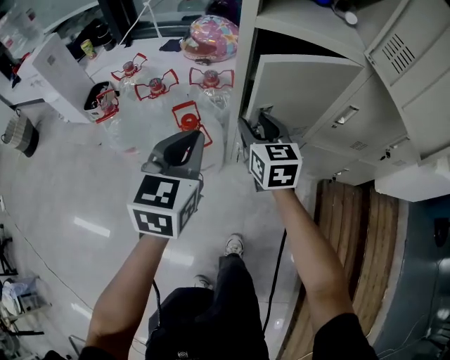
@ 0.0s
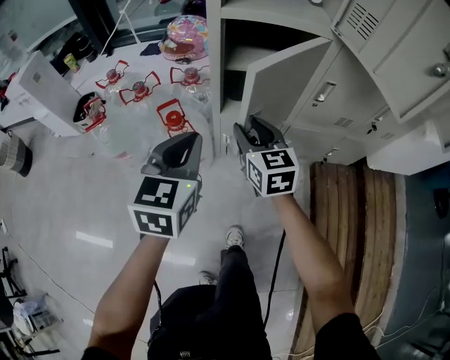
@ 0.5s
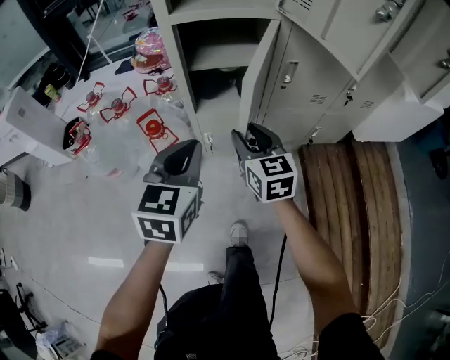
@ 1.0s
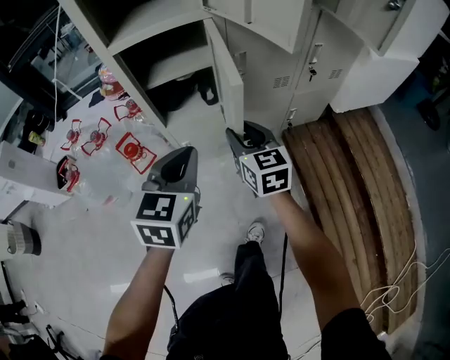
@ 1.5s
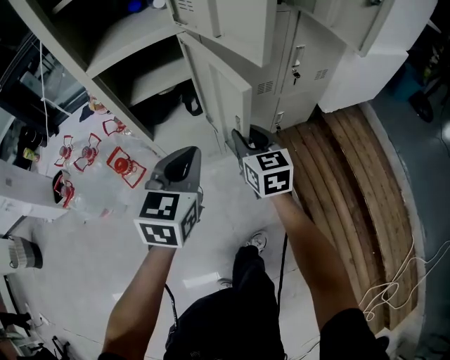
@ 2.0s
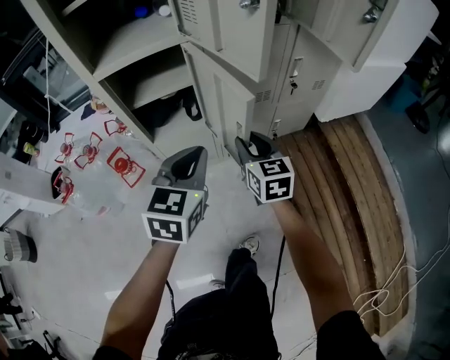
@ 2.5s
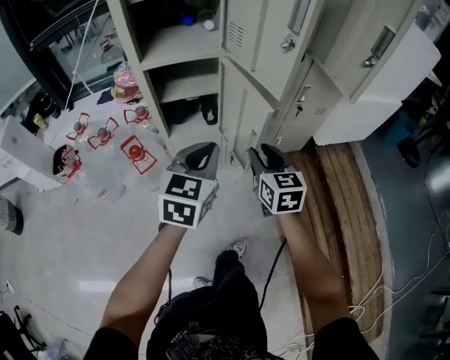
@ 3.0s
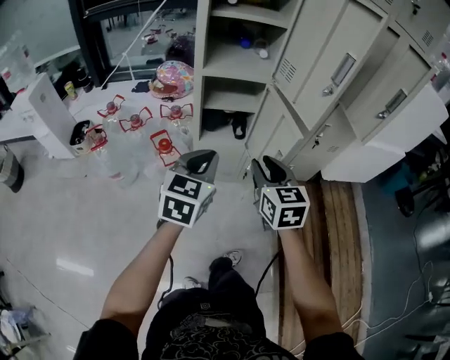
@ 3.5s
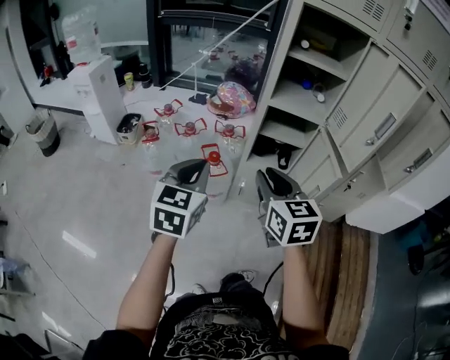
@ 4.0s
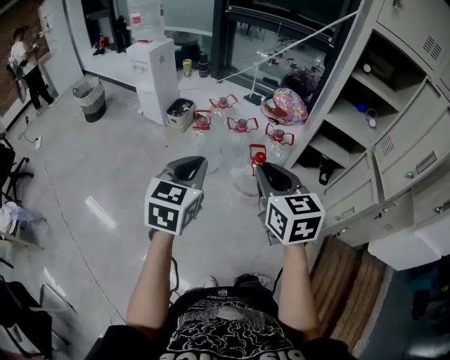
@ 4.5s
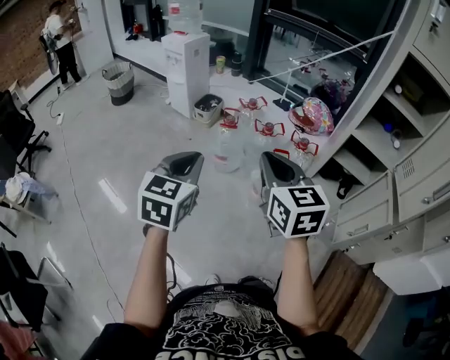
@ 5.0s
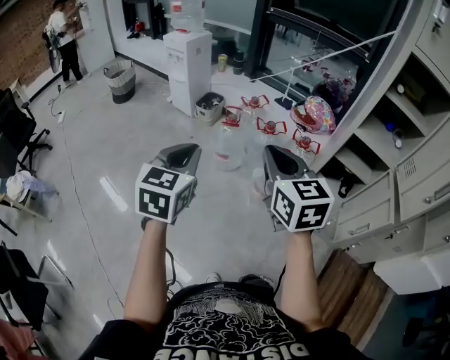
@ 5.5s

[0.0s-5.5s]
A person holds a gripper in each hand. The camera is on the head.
0.0s to 2.0s: Both grippers travel together to the right, some 25 cm. The right gripper changes its angle by some 20 degrees; the left gripper turns by some 30 degrees.
2.0s to 3.5s: The left gripper is displaced upward, to the left and backward by approximately 20 cm, while the right gripper heads upward, backward and to the left, covering approximately 25 cm.
3.5s to 5.5s: The right gripper ends up about 40 cm from where it was, changes its angle by approximately 40 degrees, and closes its fingers, while the left gripper changes place by approximately 40 cm, and rotates approximately 40 degrees.

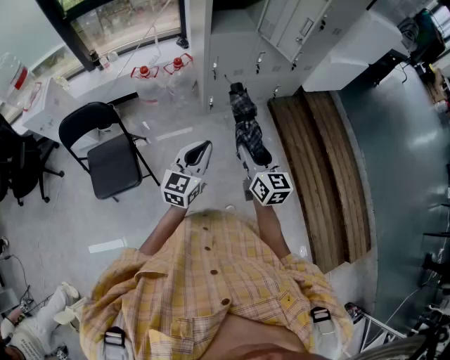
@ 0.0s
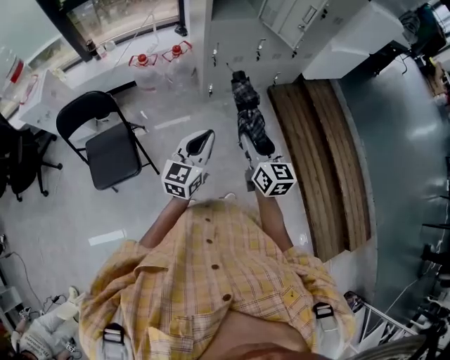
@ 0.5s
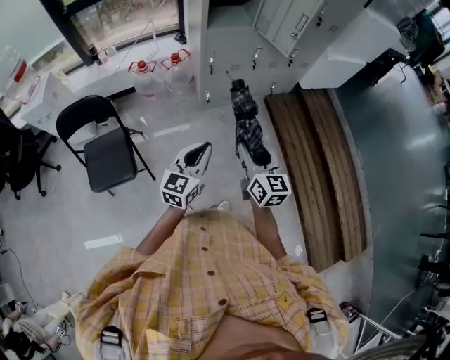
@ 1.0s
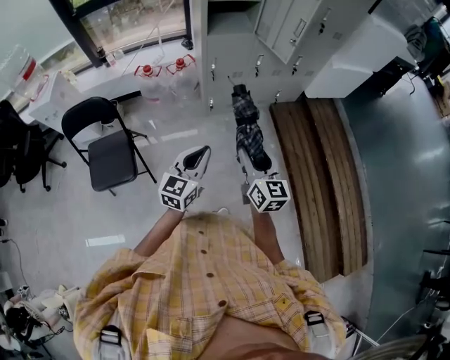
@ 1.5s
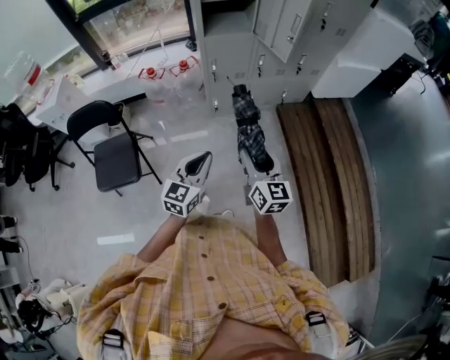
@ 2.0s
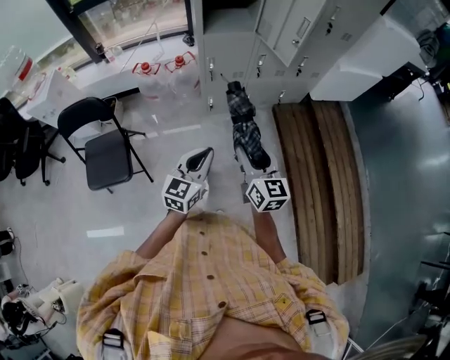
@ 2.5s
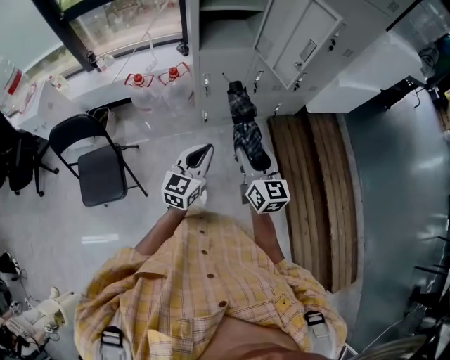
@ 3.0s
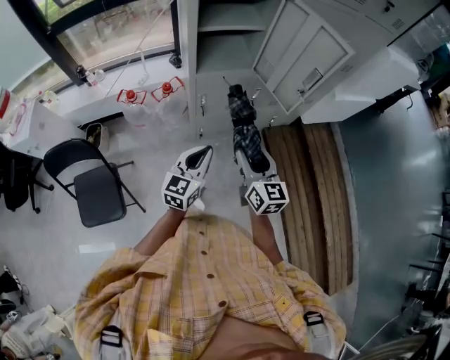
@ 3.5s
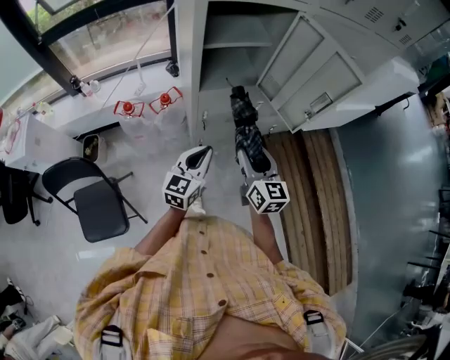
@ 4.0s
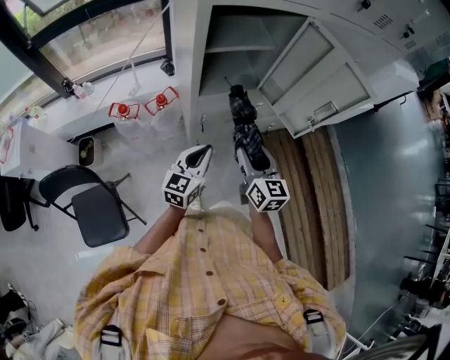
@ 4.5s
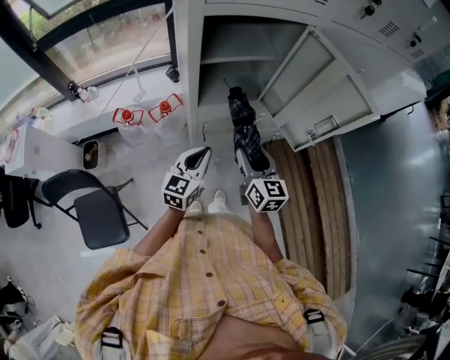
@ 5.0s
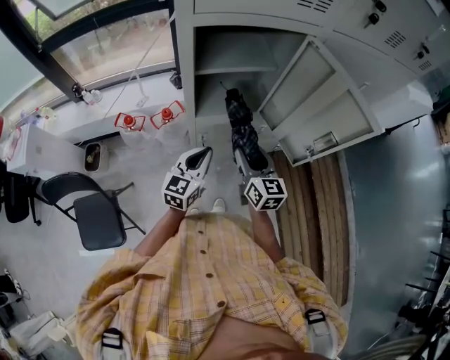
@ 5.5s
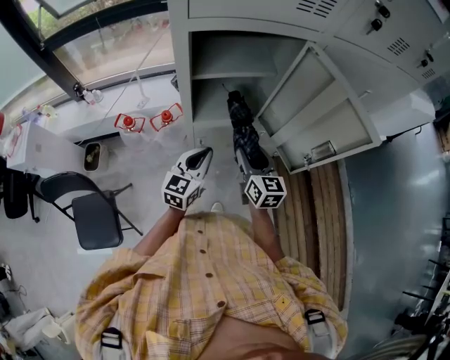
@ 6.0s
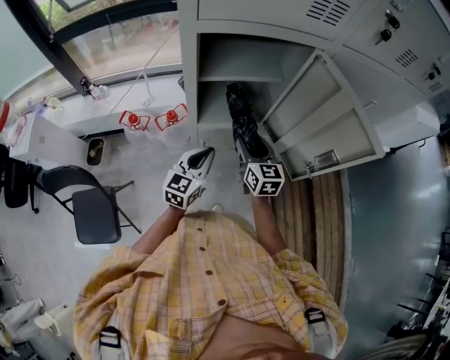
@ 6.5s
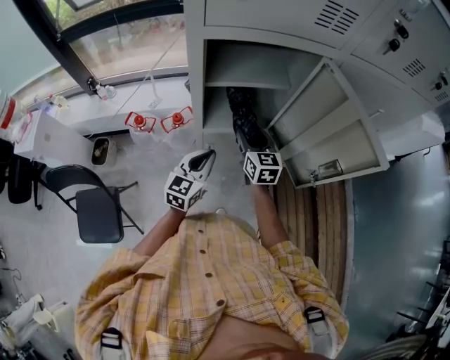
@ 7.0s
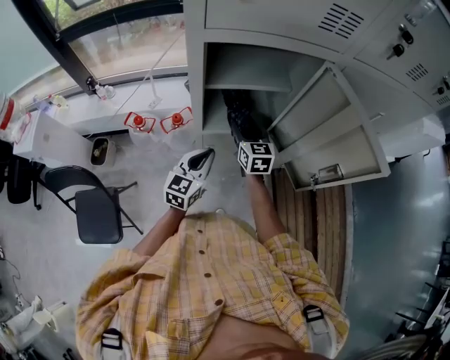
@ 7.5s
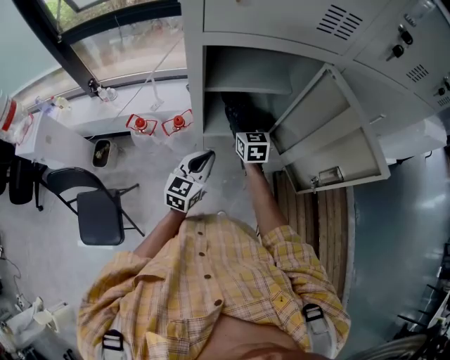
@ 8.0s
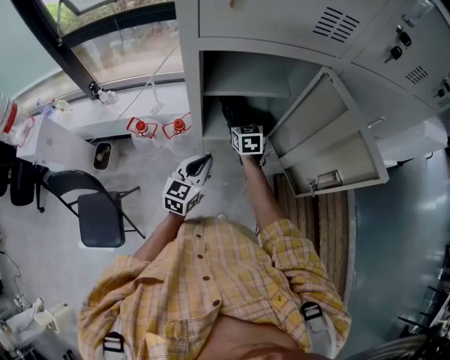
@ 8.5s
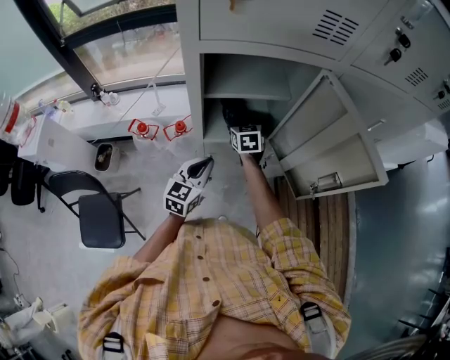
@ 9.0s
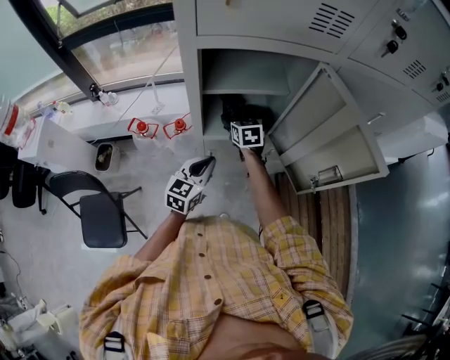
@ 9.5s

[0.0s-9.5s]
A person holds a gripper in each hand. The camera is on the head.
0.0s to 2.0s: Both grippers travel together to the right, approximately 10 cm.
2.0s to 4.0s: Both grippers move forward, some 35 cm.
4.0s to 5.5s: Both grippers move forward, about 15 cm.
5.5s to 7.5s: The right gripper shifts approximately 15 cm forward, while the left gripper ends up roughly 5 cm from where it was.
7.5s to 9.5s: The right gripper shifts roughly 5 cm forward, and opens up.

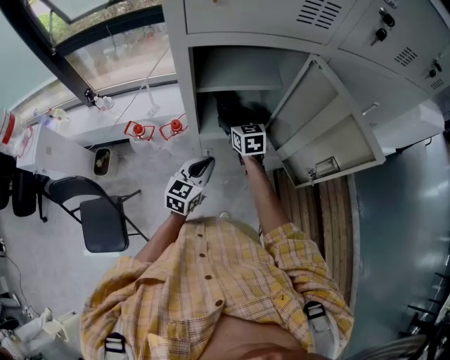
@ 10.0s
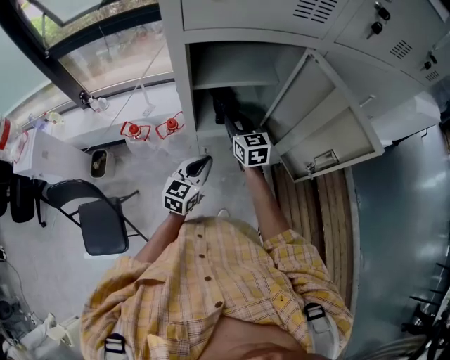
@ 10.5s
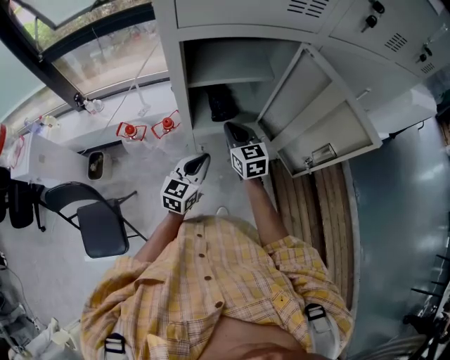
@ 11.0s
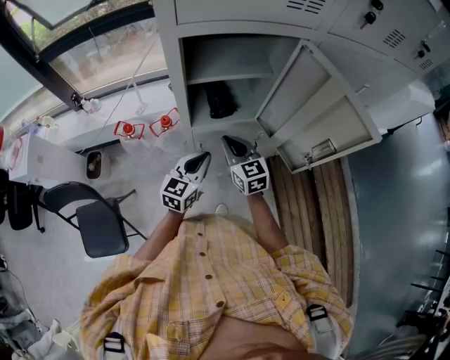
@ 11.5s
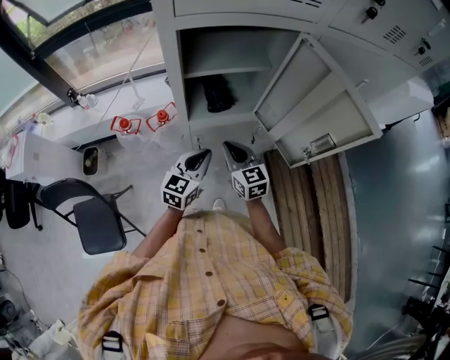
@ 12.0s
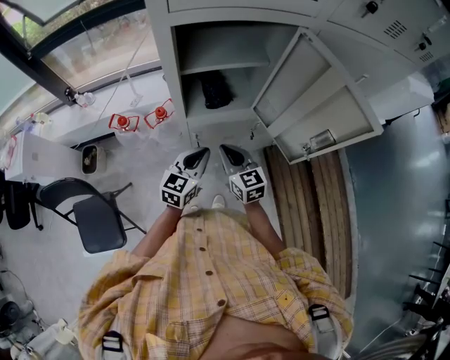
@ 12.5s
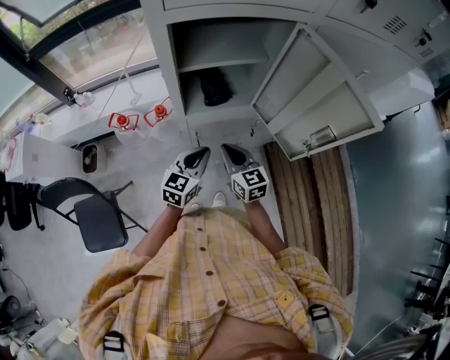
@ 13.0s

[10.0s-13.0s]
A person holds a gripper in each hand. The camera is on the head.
10.0s to 11.5s: The right gripper goes approximately 15 cm backward, and closes.
11.5s to 13.0s: The right gripper goes roughly 5 cm backward.

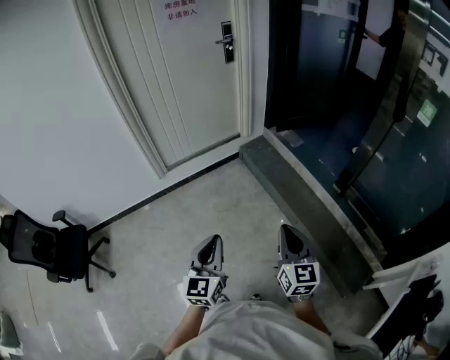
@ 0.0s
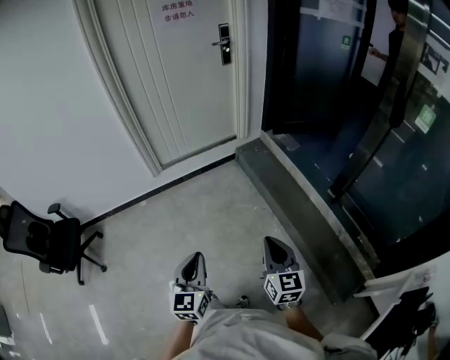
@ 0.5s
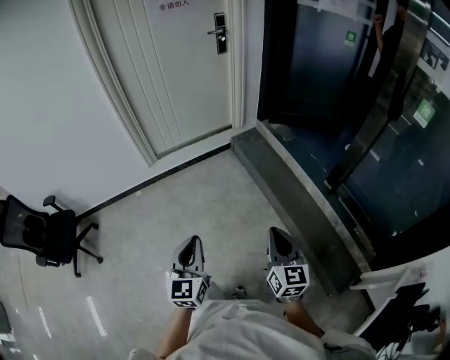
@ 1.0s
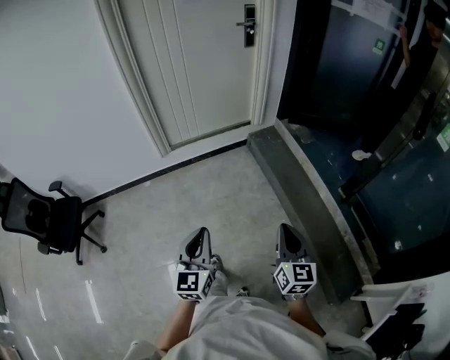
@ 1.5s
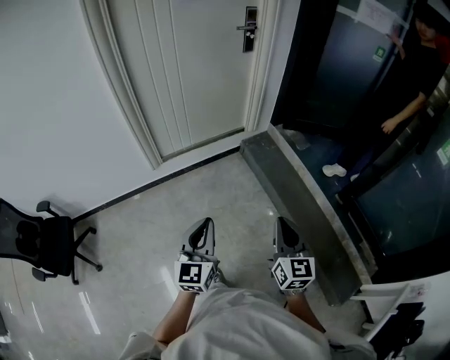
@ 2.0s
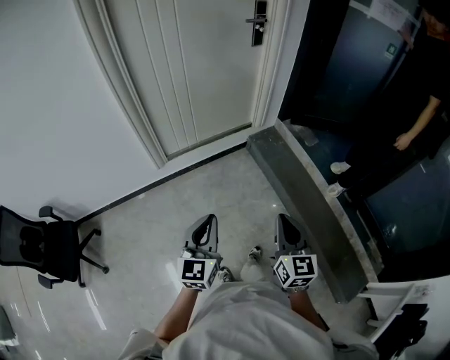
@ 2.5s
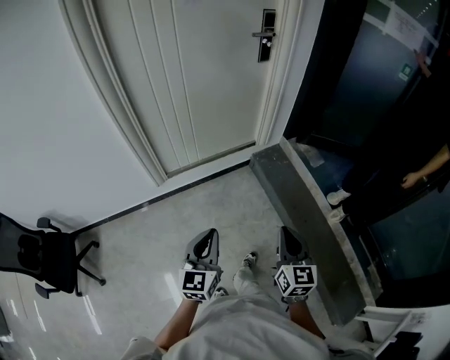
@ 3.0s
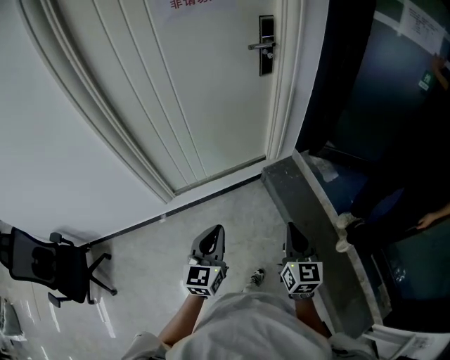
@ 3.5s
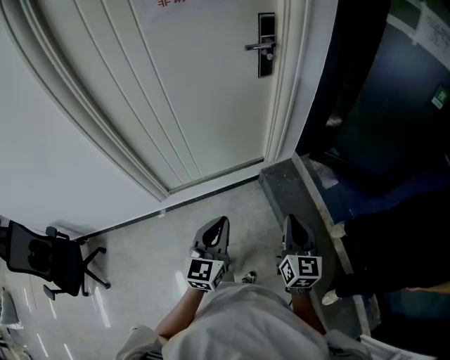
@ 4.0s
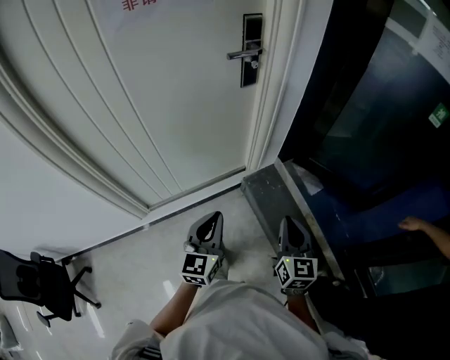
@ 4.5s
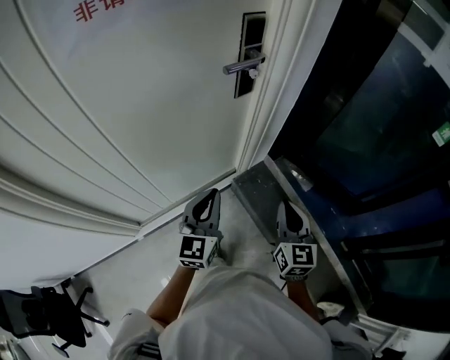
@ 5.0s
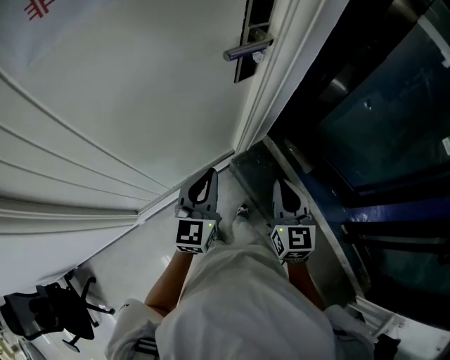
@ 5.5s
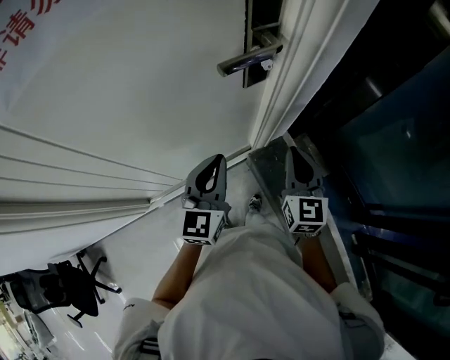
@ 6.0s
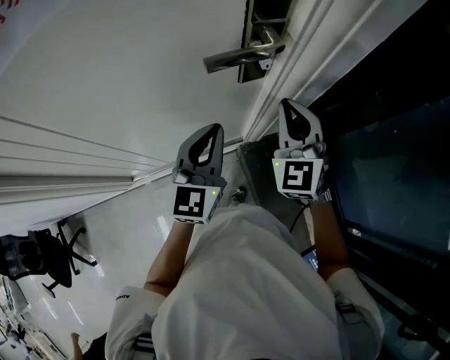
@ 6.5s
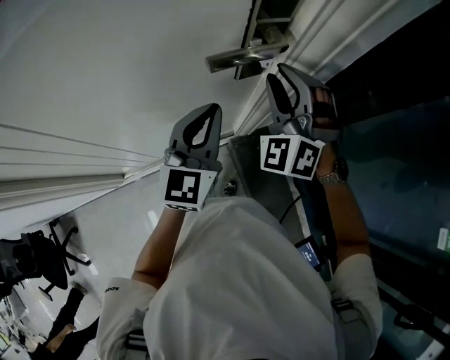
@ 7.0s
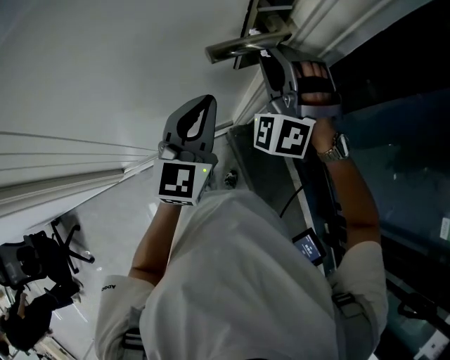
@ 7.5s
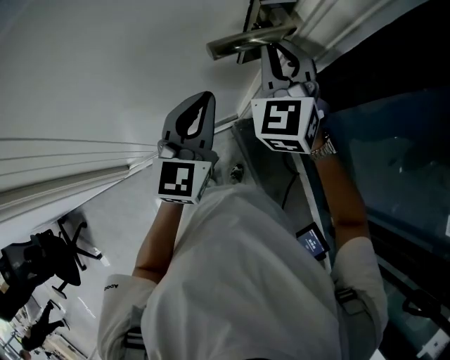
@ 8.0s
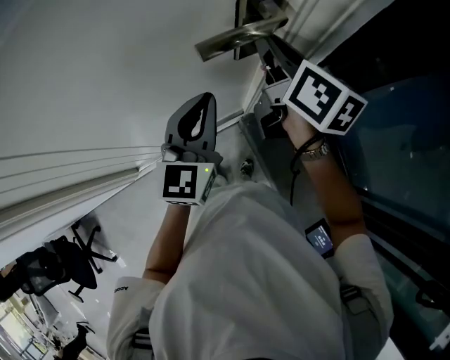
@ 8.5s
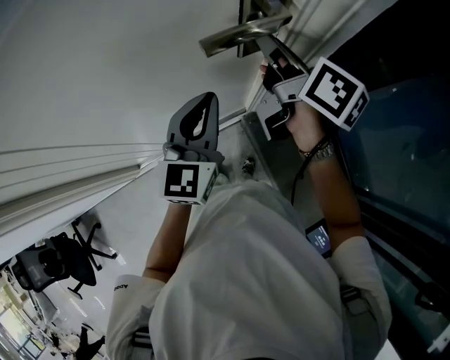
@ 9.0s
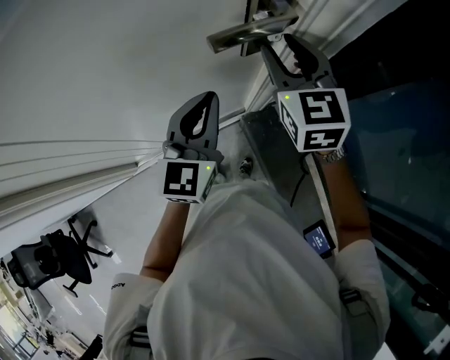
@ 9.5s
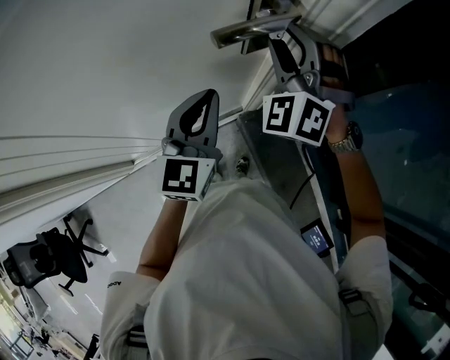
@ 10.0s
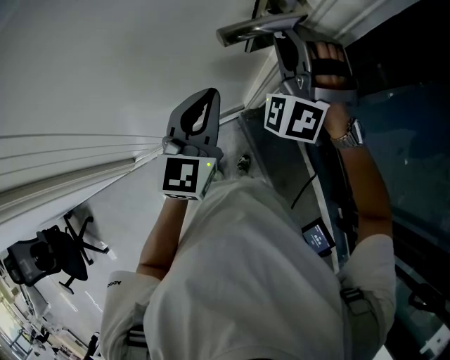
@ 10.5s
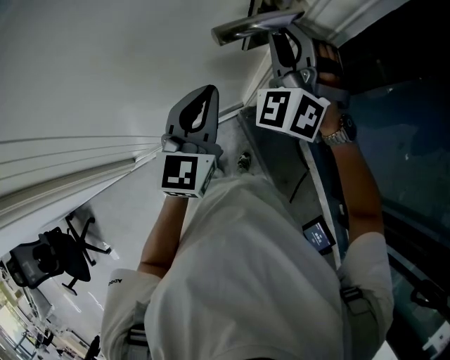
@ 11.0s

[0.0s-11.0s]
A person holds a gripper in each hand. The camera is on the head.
0.0s to 2.0s: The two grippers go roughly 20 cm forward and to the left.
2.0s to 3.5s: Both grippers travel together forward, roughly 30 cm.
3.5s to 5.5s: Both grippers are carried forward, approximately 50 cm.
5.5s to 7.5s: The left gripper travels forward and upward by approximately 20 cm; the right gripper goes approximately 30 cm forward, rotates around the line of its fingers by some 80 degrees, counterclockwise from behind, and opens its fingers.
7.5s to 9.0s: The right gripper rotates around the line of its fingers by roughly 130 degrees, clockwise from behind.
9.0s to 11.0s: The right gripper rolls counterclockwise, seen from behind, by some 110 degrees.
